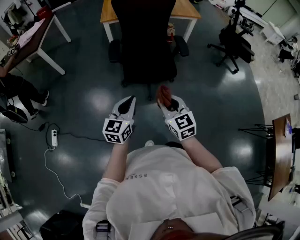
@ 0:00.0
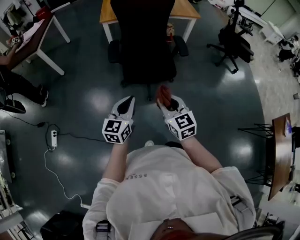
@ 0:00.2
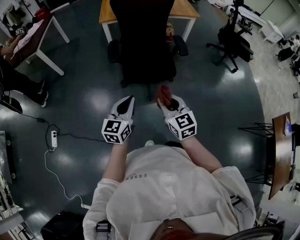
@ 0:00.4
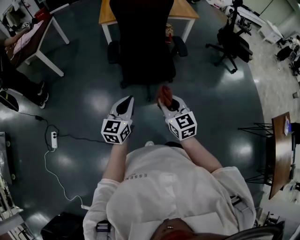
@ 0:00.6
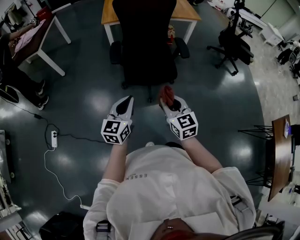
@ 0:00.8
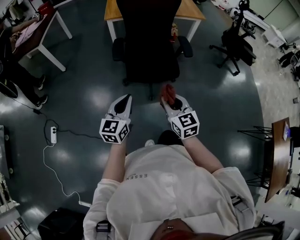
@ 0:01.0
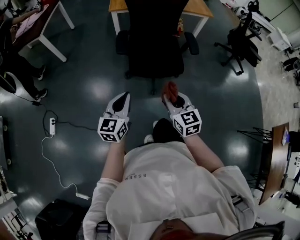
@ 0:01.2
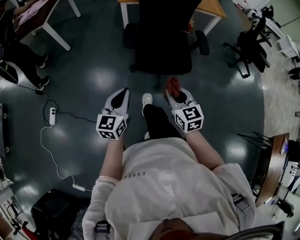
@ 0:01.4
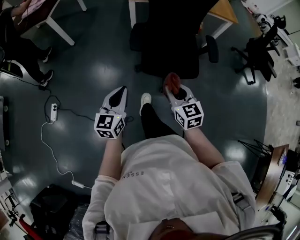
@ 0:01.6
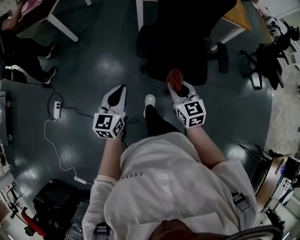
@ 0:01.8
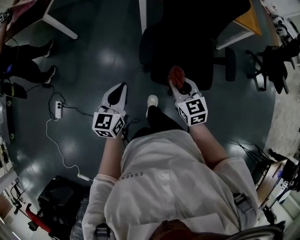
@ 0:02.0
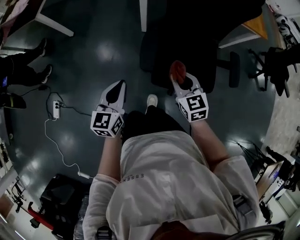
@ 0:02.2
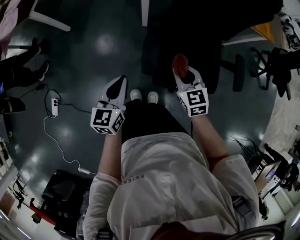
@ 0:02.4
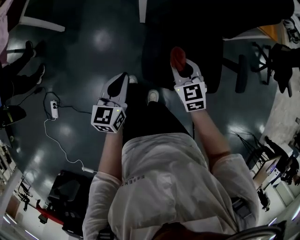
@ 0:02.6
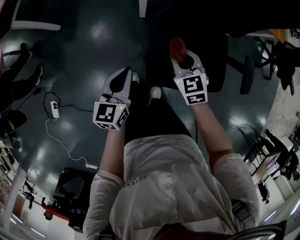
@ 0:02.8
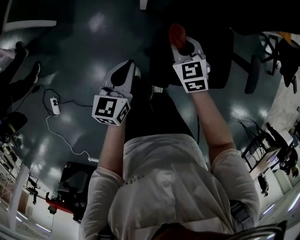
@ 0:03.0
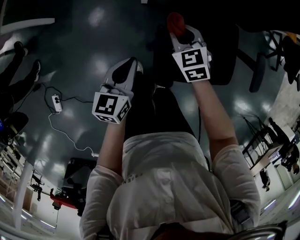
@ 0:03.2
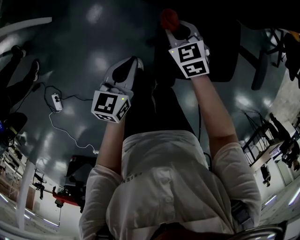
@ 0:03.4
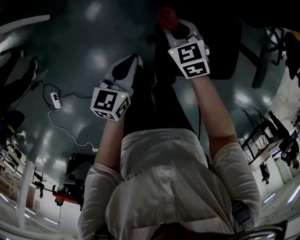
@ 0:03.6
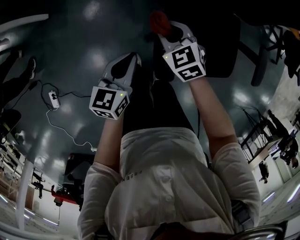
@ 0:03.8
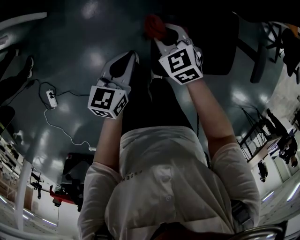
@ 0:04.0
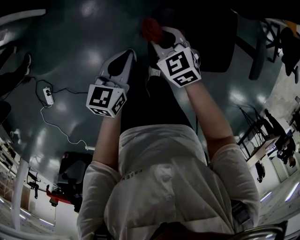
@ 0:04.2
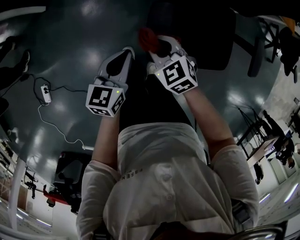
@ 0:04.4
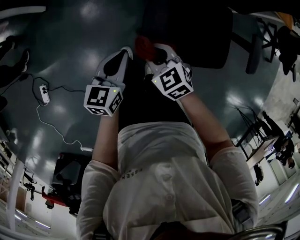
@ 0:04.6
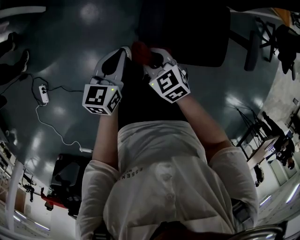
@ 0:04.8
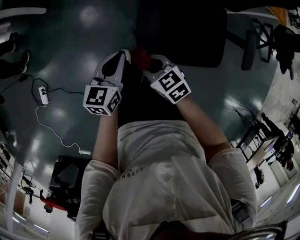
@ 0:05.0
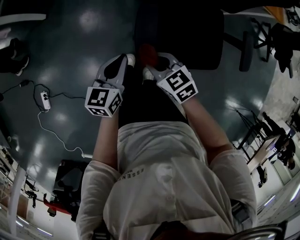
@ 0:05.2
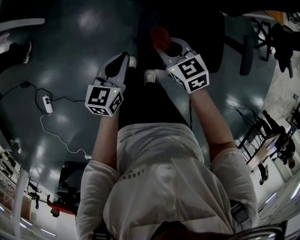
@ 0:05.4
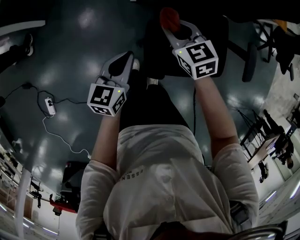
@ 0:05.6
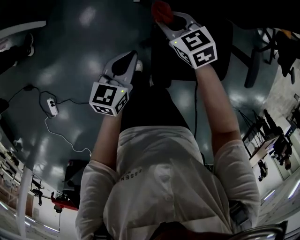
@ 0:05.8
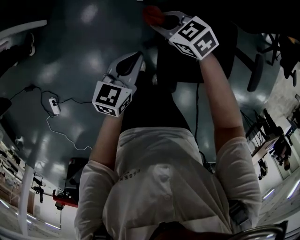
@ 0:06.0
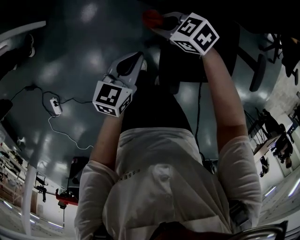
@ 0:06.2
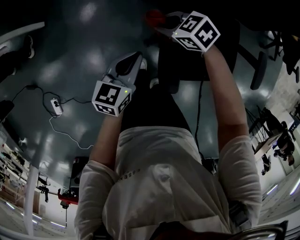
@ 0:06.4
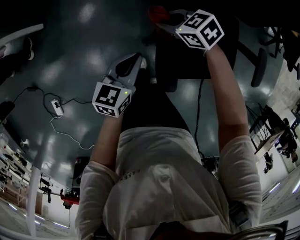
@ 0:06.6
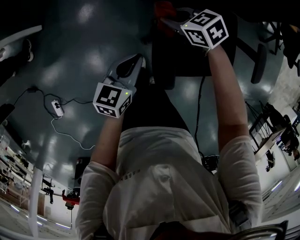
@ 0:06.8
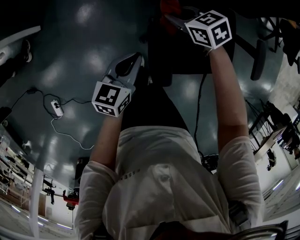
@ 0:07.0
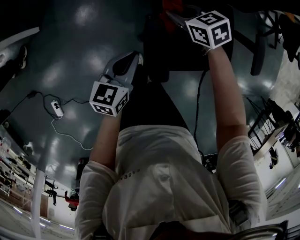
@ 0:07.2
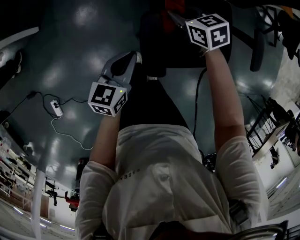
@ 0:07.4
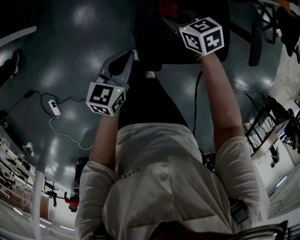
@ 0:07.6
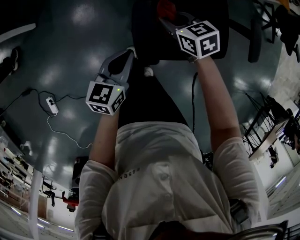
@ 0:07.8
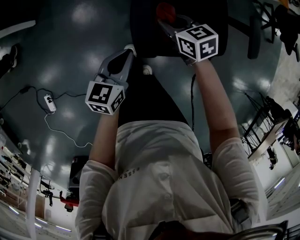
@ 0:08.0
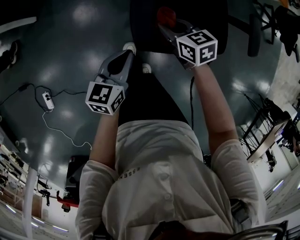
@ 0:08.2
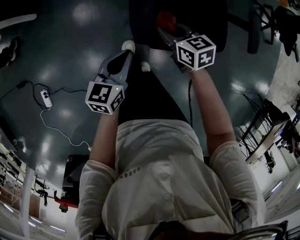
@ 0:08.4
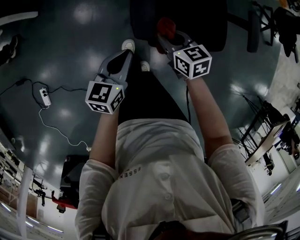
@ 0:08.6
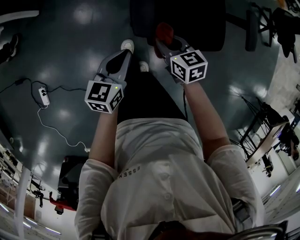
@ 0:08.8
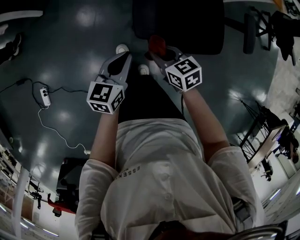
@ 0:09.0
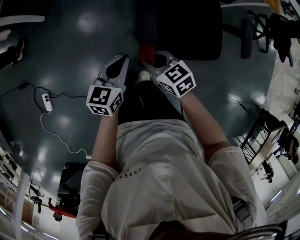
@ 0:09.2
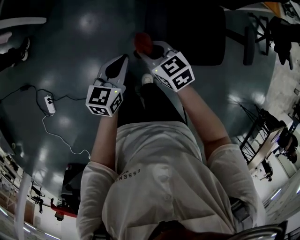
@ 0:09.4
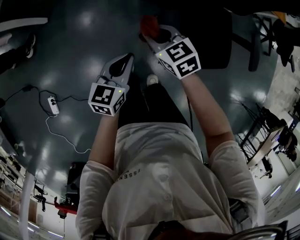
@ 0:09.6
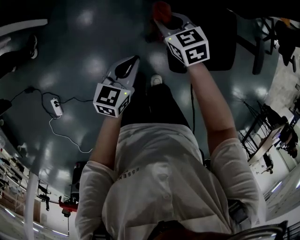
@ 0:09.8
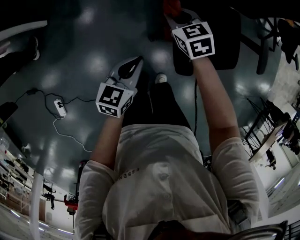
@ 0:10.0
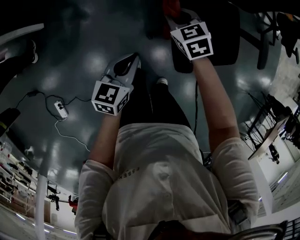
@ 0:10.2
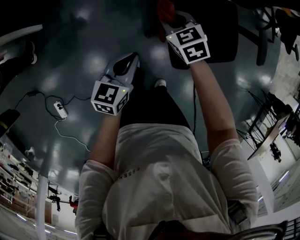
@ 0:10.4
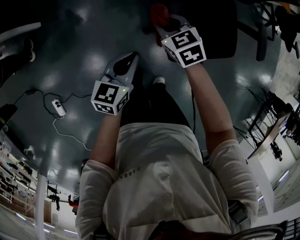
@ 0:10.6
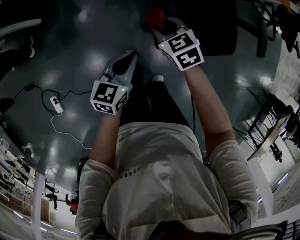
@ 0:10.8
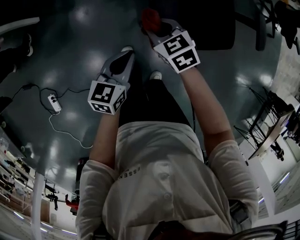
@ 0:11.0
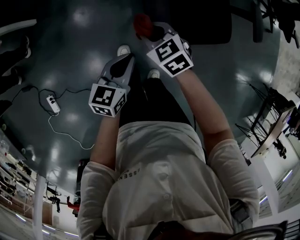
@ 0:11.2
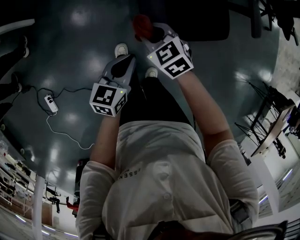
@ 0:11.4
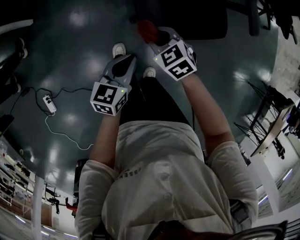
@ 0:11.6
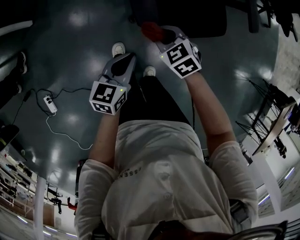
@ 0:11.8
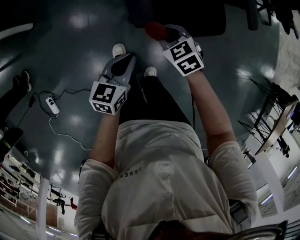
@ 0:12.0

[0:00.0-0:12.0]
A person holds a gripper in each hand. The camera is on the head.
0:00.0 to 0:01.6: The right gripper is displaced forward and to the left by some 15 cm. Meanwhile the left gripper shifts roughly 15 cm to the left and forward.
0:01.6 to 0:03.0: Both grippers are carried forward, approximately 40 cm. The right gripper turns by roughly 20 degrees.
0:03.0 to 0:04.4: The right gripper travels backward and to the left by about 15 cm. The left gripper is displaced backward by some 5 cm.
0:04.4 to 0:06.0: The left gripper shifts about 10 cm forward, while the right gripper shifts some 20 cm forward.
0:06.0 to 0:07.6: The left gripper changes place by about 10 cm; the right gripper ends up roughly 15 cm from where it was, and changes its angle by some 20 degrees.
0:07.6 to 0:09.0: The left gripper is displaced backward by roughly 10 cm; the right gripper travels backward by some 25 cm.
0:09.0 to 0:10.4: The left gripper heads forward and to the left, covering approximately 15 cm. Meanwhile the right gripper travels forward by about 25 cm, and rotates approximately 20 degrees.
0:10.4 to 0:12.0: The grippers both shift backward and to the right by some 20 cm.

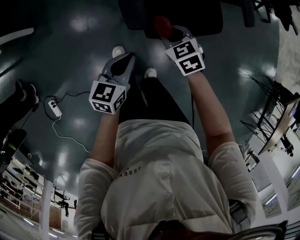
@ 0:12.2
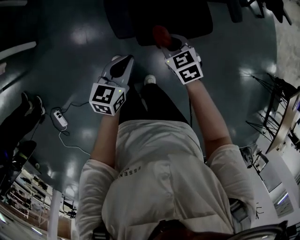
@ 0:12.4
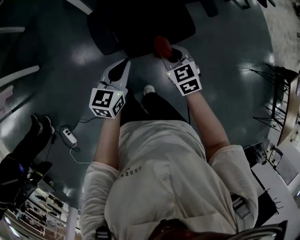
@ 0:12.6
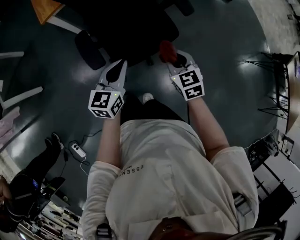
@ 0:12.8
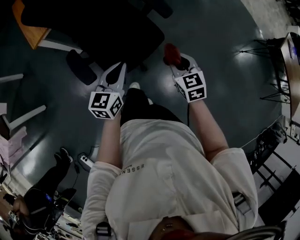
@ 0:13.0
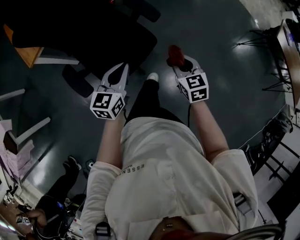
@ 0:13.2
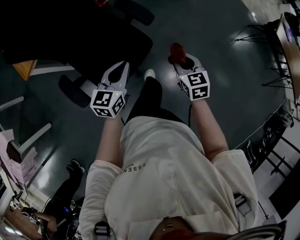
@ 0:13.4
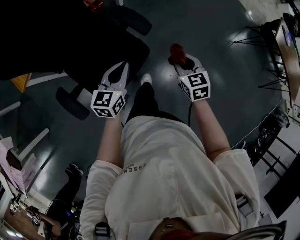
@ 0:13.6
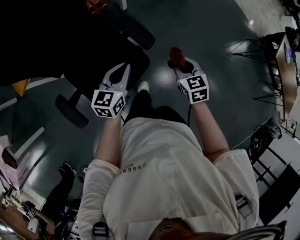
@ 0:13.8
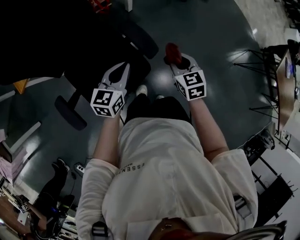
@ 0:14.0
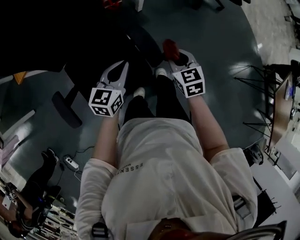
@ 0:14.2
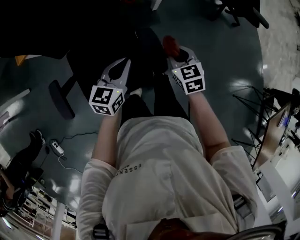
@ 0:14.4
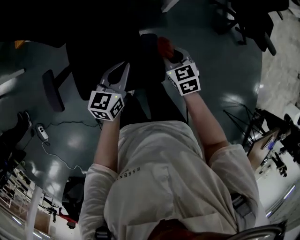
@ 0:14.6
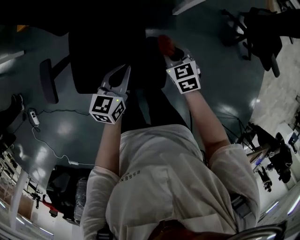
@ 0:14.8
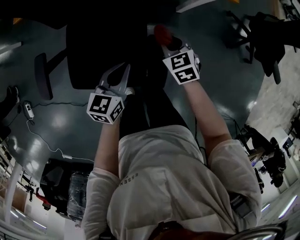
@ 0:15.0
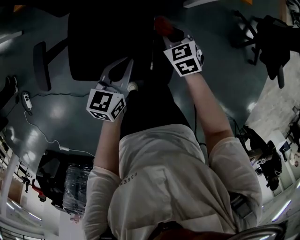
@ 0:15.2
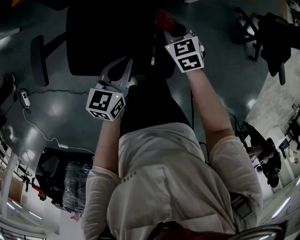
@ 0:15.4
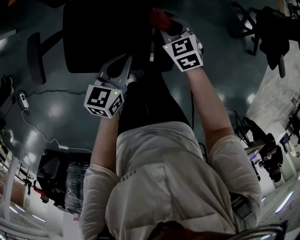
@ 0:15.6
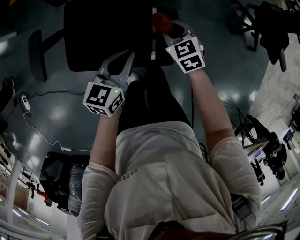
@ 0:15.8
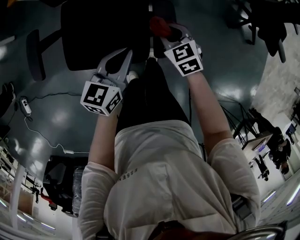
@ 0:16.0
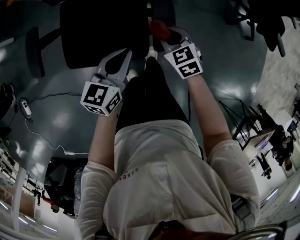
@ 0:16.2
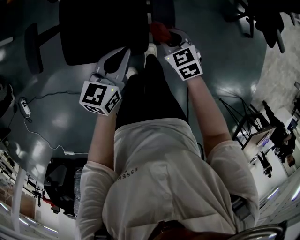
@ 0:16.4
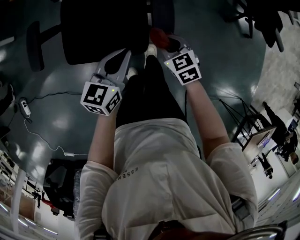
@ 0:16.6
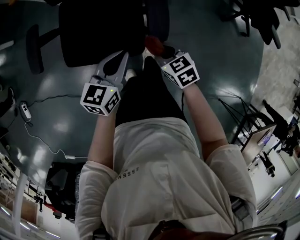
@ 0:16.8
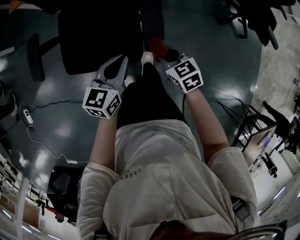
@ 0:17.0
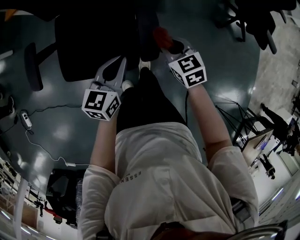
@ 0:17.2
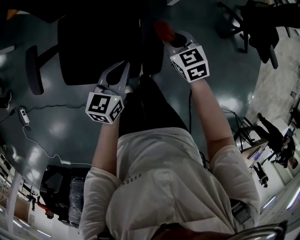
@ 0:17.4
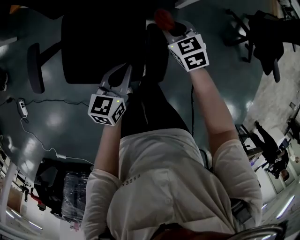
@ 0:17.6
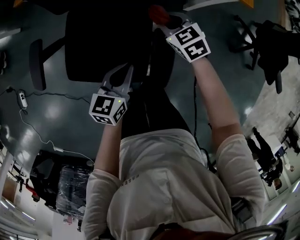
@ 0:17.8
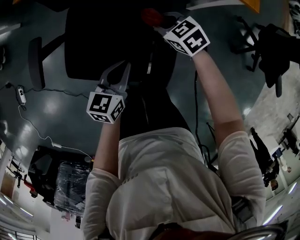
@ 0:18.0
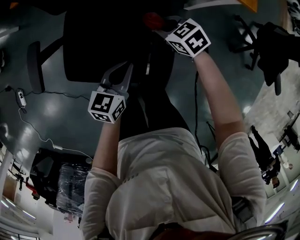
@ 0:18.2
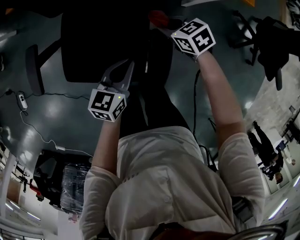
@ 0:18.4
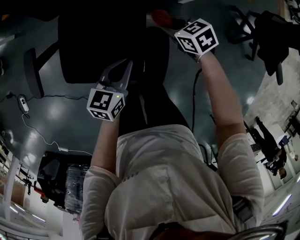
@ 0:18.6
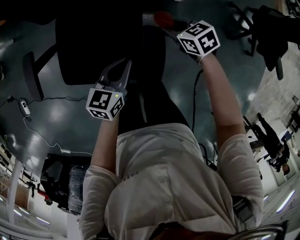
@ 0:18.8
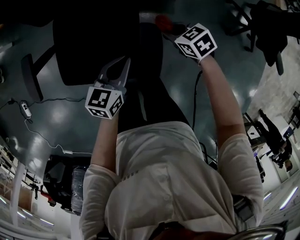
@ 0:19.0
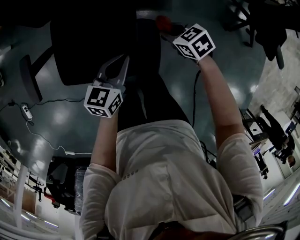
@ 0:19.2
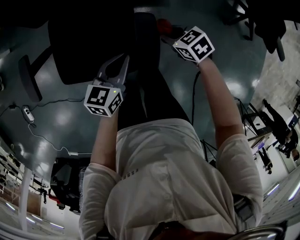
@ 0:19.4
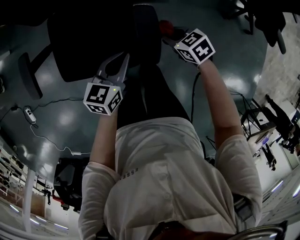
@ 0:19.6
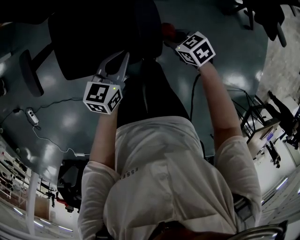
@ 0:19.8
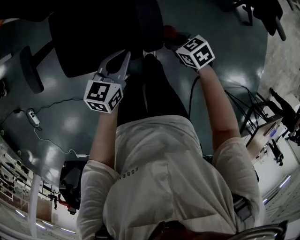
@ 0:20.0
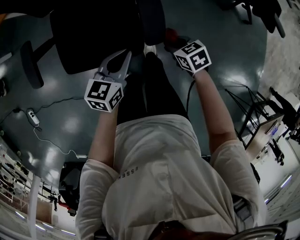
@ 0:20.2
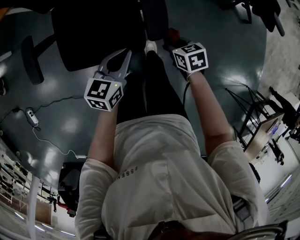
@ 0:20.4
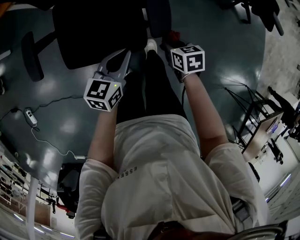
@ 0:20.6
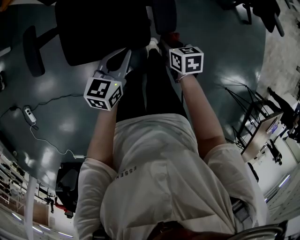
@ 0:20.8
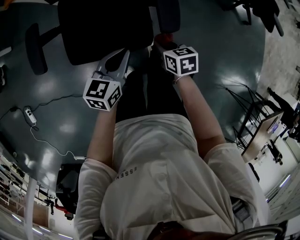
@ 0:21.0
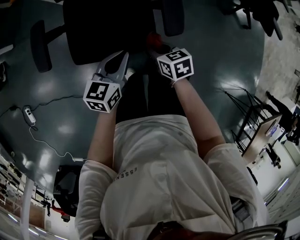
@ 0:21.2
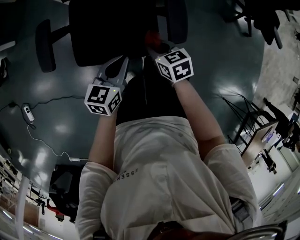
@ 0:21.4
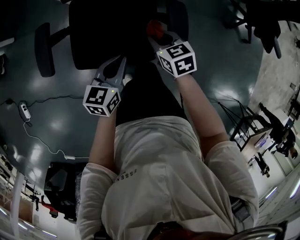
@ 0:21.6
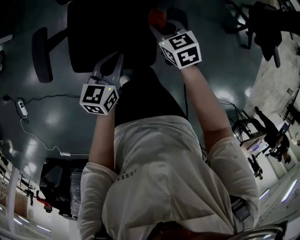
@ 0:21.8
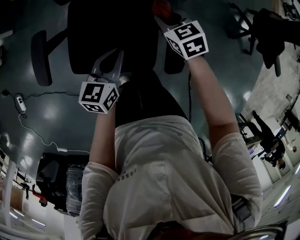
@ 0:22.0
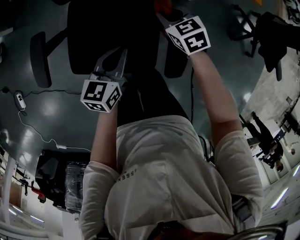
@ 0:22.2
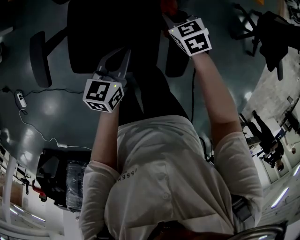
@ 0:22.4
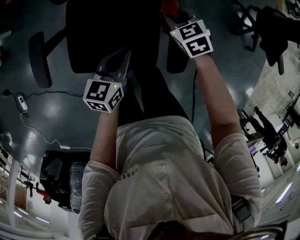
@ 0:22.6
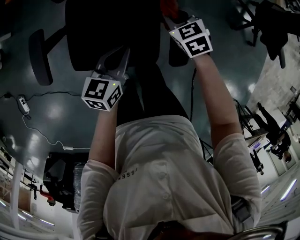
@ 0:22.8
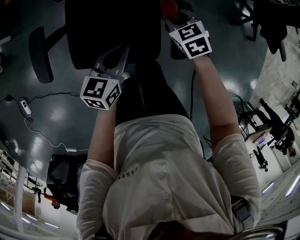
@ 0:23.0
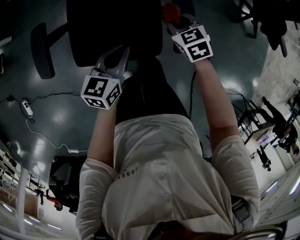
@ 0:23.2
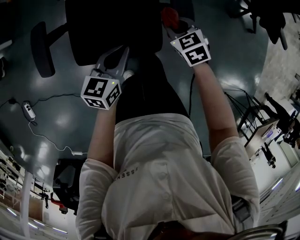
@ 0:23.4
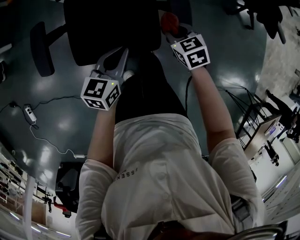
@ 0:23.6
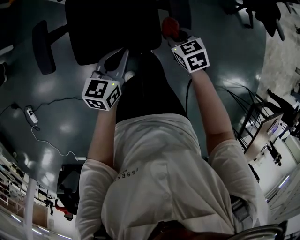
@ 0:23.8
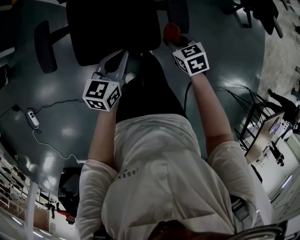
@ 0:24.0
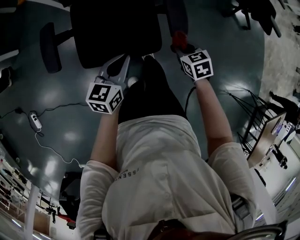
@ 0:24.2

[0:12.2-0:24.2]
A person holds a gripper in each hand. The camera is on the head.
0:12.2 to 0:13.8: The pair of grippers is taken roughly 40 cm. The right gripper changes its angle by approximately 50 degrees. Meanwhile the left gripper rotates some 30 degrees.
0:13.8 to 0:15.2: The left gripper moves some 15 cm, and swivels approximately 50 degrees, while the right gripper changes place by approximately 35 cm, and changes its angle by some 60 degrees.
0:15.2 to 0:16.6: The right gripper goes about 20 cm backward; the left gripper travels backward by approximately 15 cm.
0:16.6 to 0:18.2: The right gripper shifts approximately 25 cm forward, and changes its angle by about 30 degrees, while the left gripper goes approximately 15 cm forward and downward.
0:18.2 to 0:19.8: The left gripper is displaced backward by approximately 10 cm. The right gripper heads backward, covering about 20 cm, and changes its angle by some 20 degrees.
0:19.8 to 0:21.2: Both grippers travel together to the left and backward, approximately 15 cm. The right gripper rotates approximately 20 degrees.
0:21.2 to 0:22.6: The right gripper moves forward, approximately 25 cm, and turns by about 30 degrees, while the left gripper is displaced forward by some 15 cm.
0:22.6 to 0:24.2: The right gripper goes approximately 25 cm backward, and swivels approximately 30 degrees. The left gripper goes about 15 cm backward.
